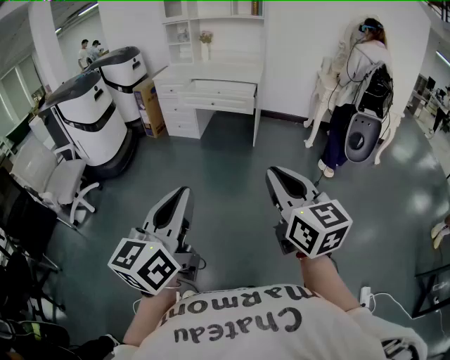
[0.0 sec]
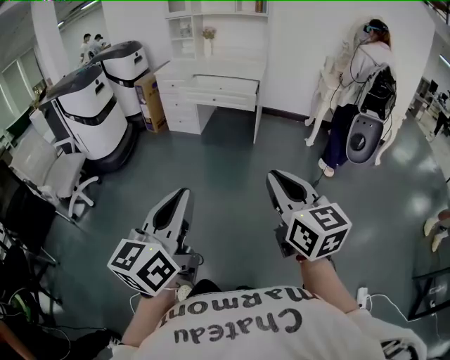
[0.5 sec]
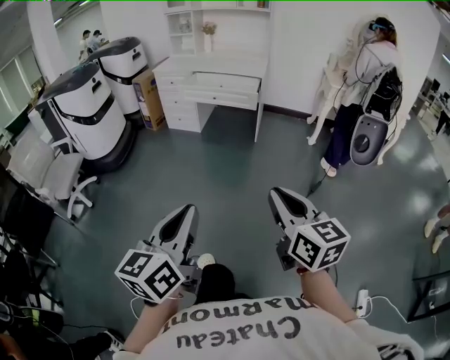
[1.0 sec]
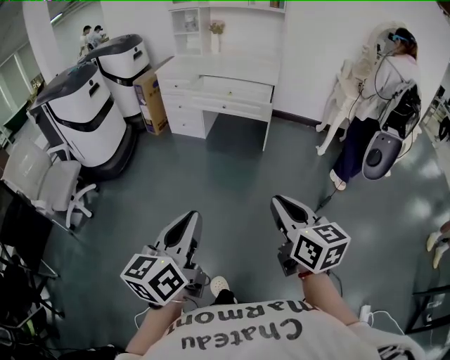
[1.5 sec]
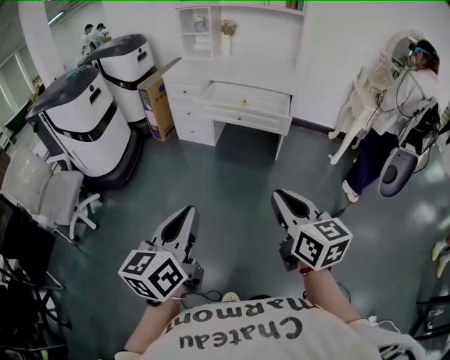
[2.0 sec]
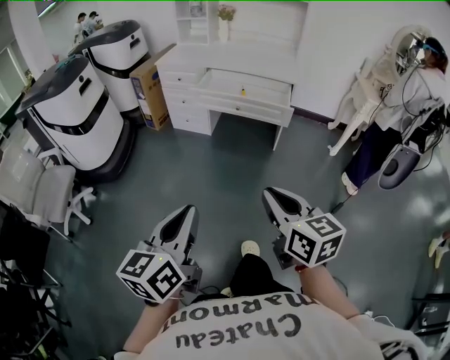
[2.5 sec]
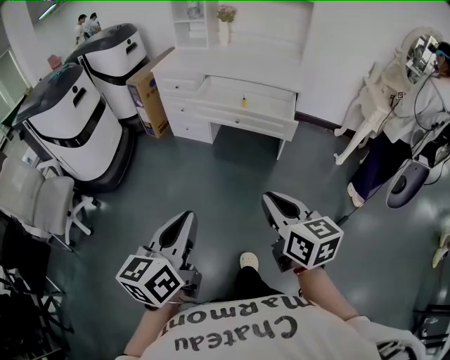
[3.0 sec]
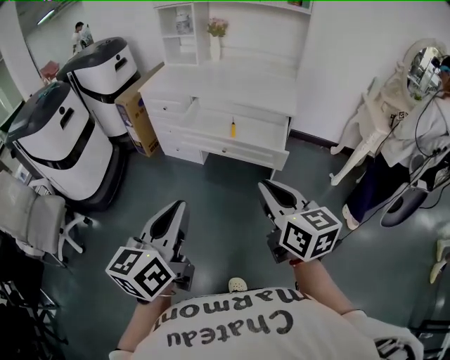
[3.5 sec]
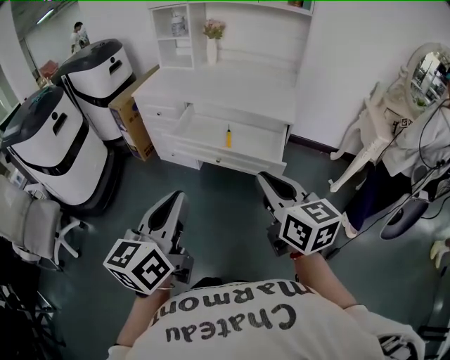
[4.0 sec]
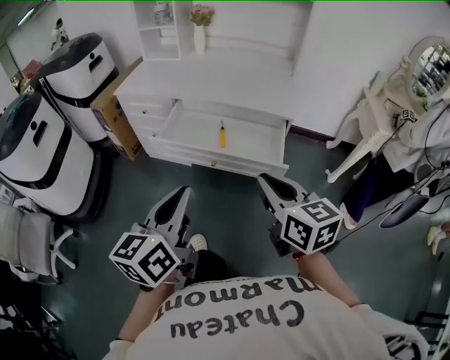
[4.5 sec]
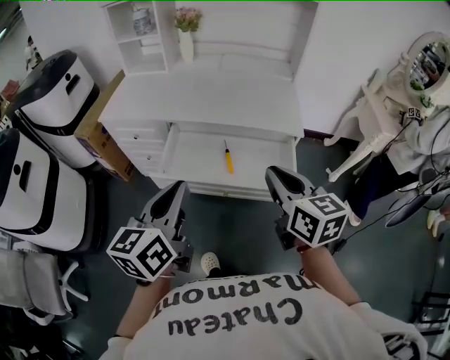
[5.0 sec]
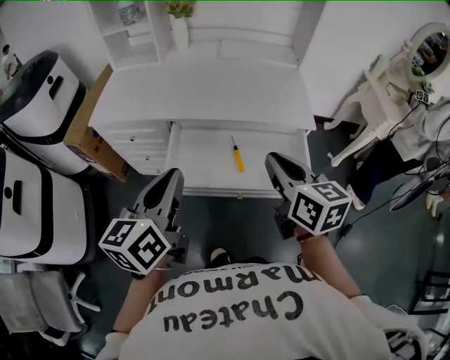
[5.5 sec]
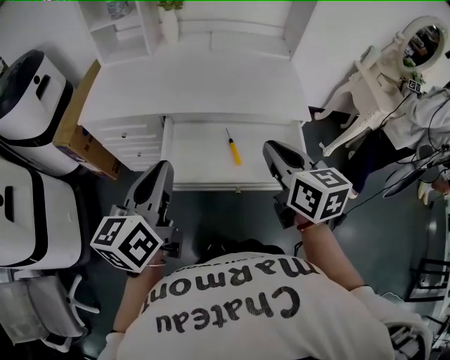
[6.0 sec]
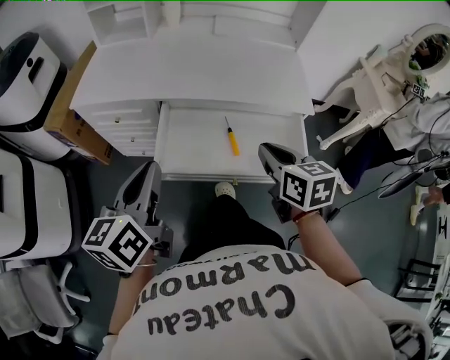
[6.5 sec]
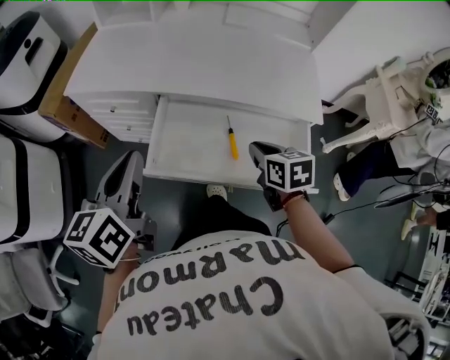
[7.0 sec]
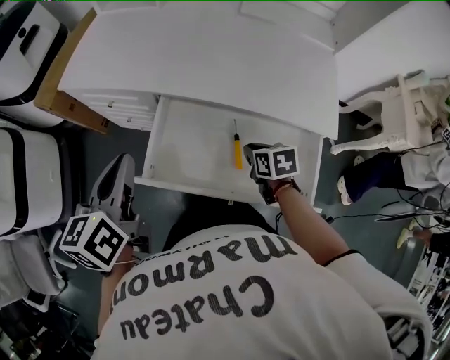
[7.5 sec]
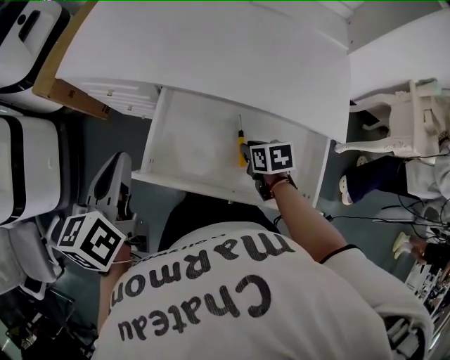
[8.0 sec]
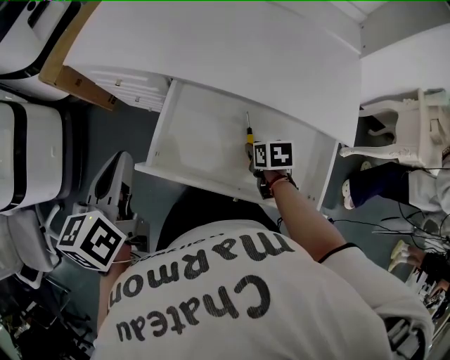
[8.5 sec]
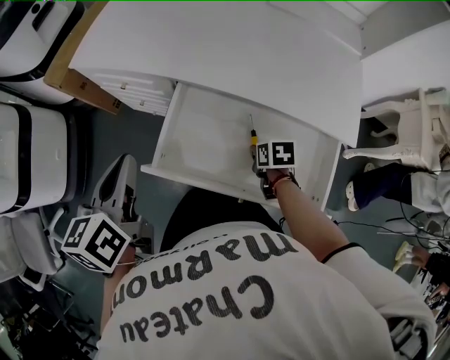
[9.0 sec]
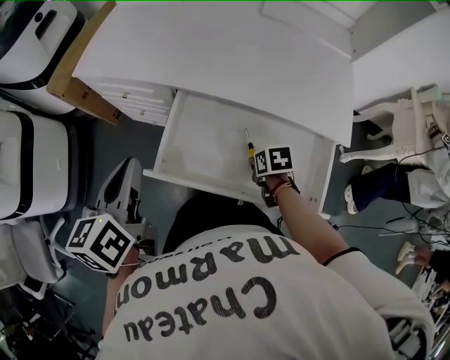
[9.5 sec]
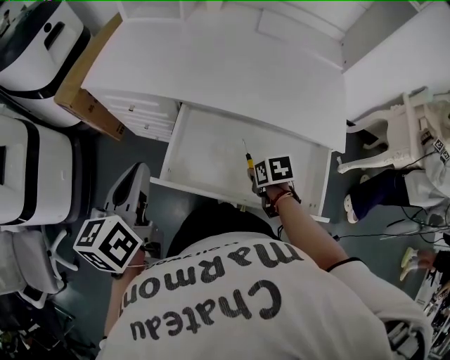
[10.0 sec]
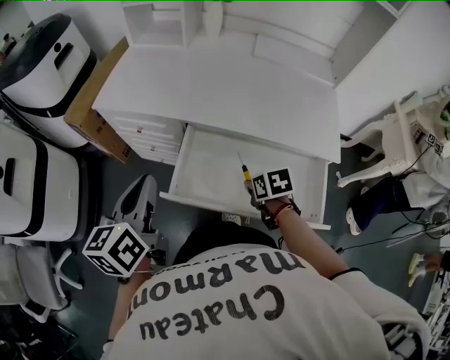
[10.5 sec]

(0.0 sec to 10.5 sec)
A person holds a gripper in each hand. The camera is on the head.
0.0 sec - 2.0 sec: The two grippers go approximately 35 cm forward.
2.0 sec - 4.0 sec: The grippers both shift forward by roughly 35 cm.
4.0 sec - 6.5 sec: The right gripper shifts about 35 cm forward, and rotates approximately 30 degrees. The left gripper goes roughly 40 cm forward and to the left.
6.5 sec - 8.5 sec: The left gripper moves forward and downward, roughly 15 cm, and changes its angle by roughly 20 degrees. The right gripper heads downward and forward, covering some 30 cm, and points its fingers some 30 degrees further downward.
8.5 sec - 10.5 sec: The left gripper travels upward by about 5 cm, while the right gripper heads upward and to the left, covering approximately 10 cm.

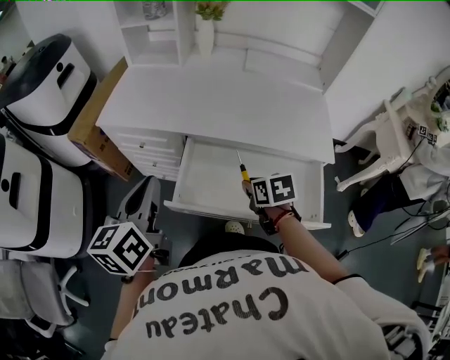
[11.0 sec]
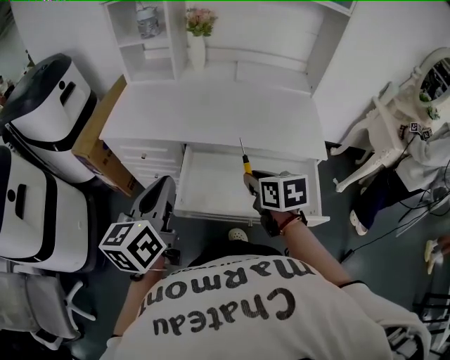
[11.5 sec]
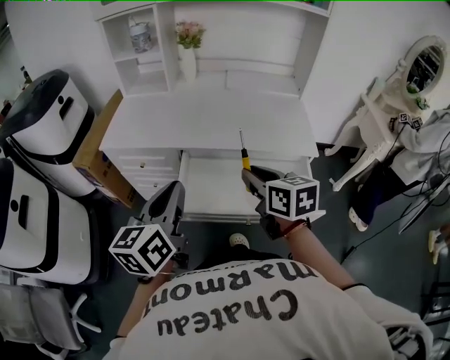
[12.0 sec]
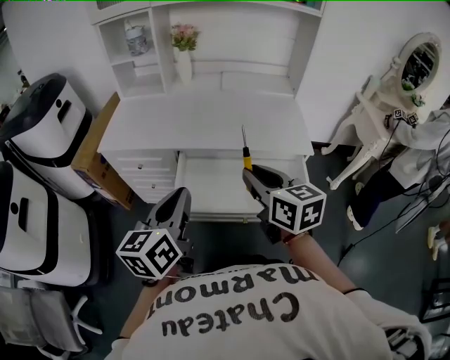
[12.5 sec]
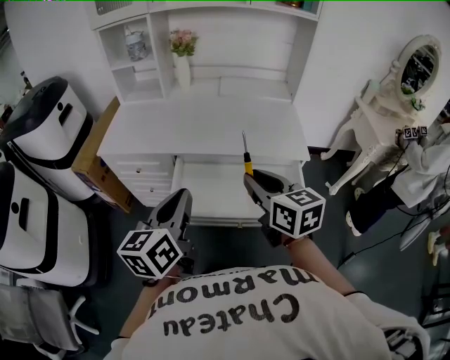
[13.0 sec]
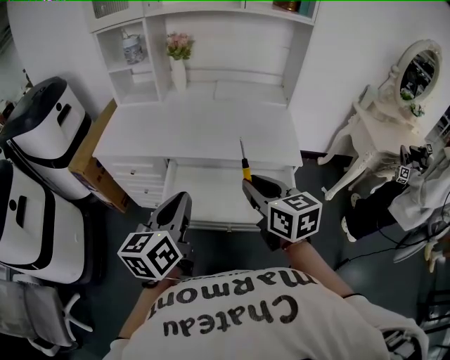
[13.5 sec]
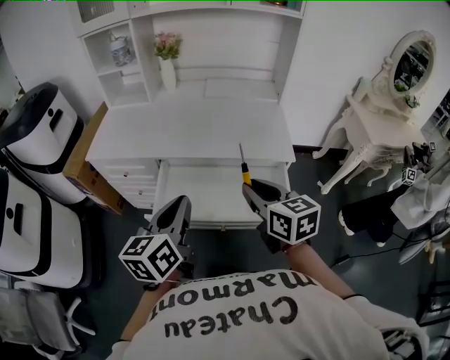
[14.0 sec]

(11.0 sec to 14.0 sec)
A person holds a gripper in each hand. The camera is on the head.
11.0 sec - 12.5 sec: The left gripper is displaced to the right and backward by about 10 cm; the right gripper goes some 20 cm upward, and angles its fingers upward, by roughly 40 degrees.
12.5 sec - 14.0 sec: Both grippers travel together to the right, approximately 10 cm.

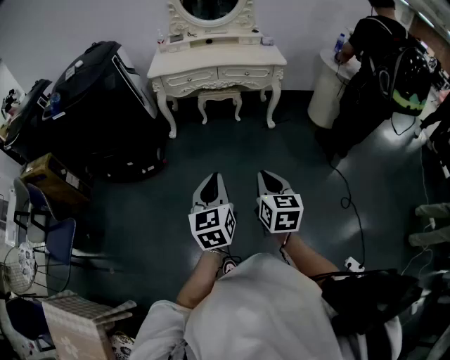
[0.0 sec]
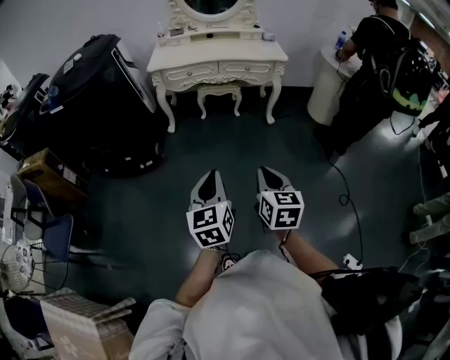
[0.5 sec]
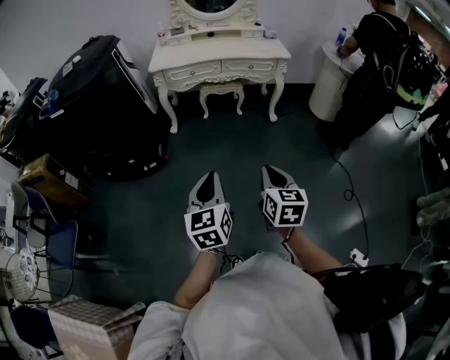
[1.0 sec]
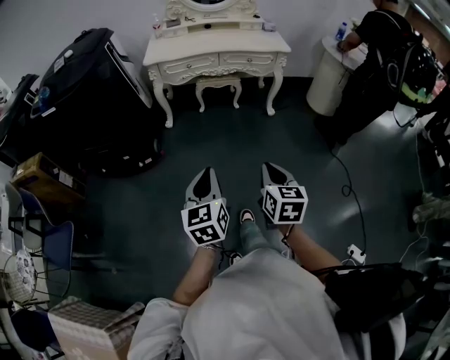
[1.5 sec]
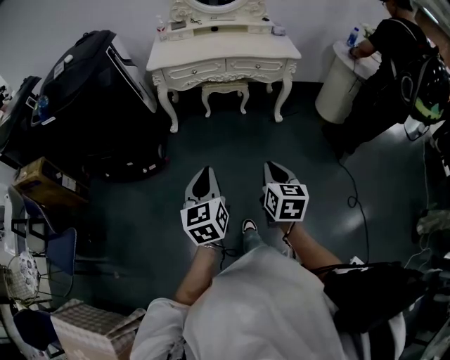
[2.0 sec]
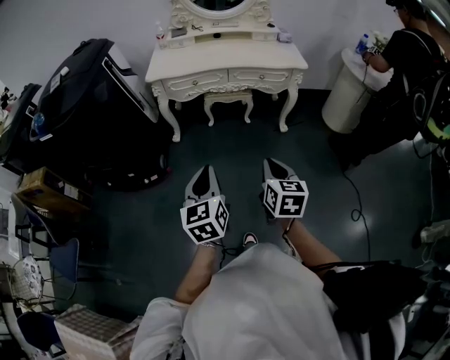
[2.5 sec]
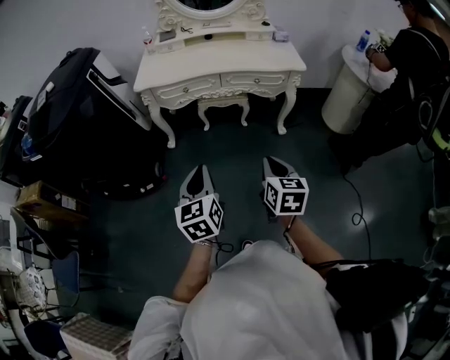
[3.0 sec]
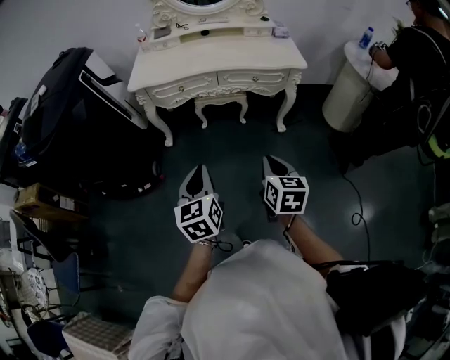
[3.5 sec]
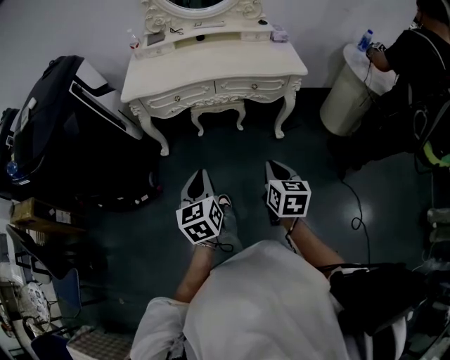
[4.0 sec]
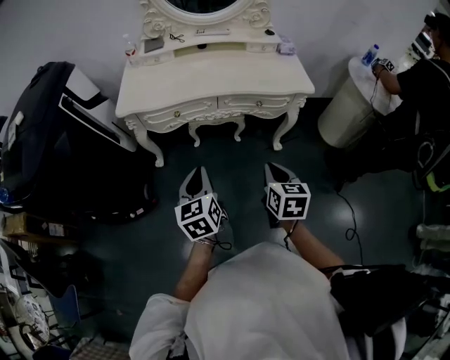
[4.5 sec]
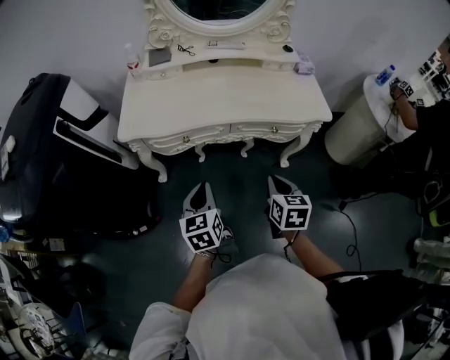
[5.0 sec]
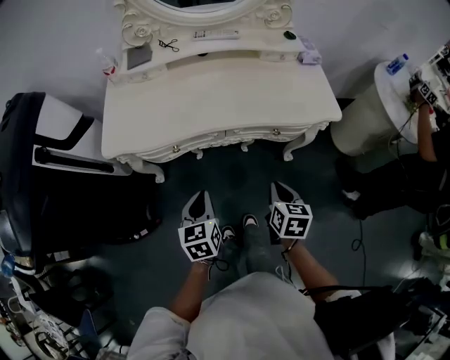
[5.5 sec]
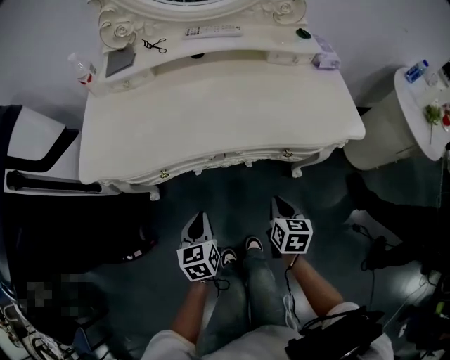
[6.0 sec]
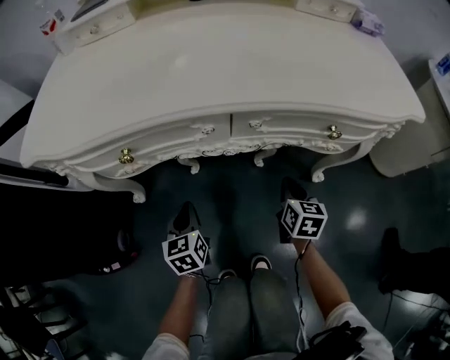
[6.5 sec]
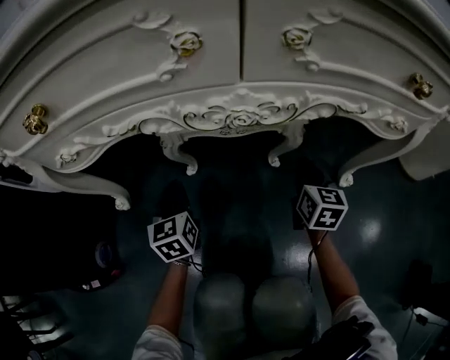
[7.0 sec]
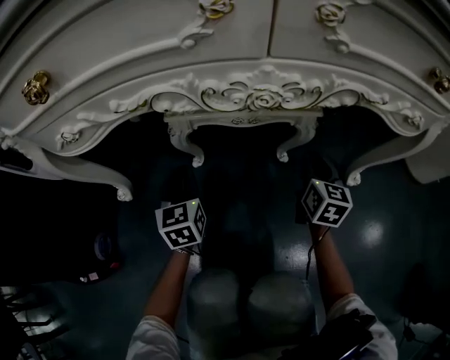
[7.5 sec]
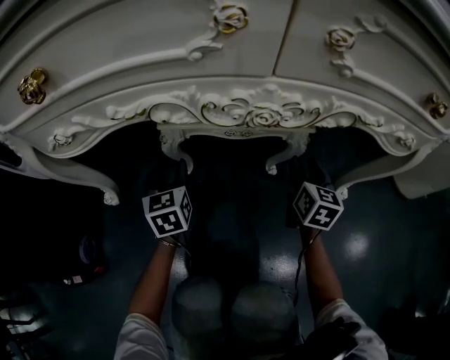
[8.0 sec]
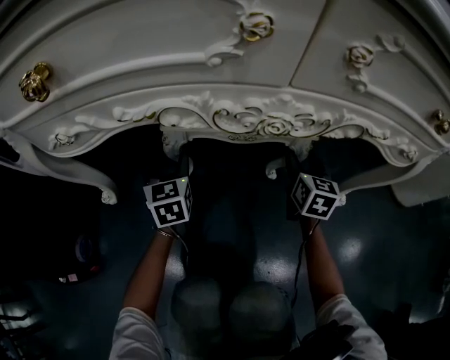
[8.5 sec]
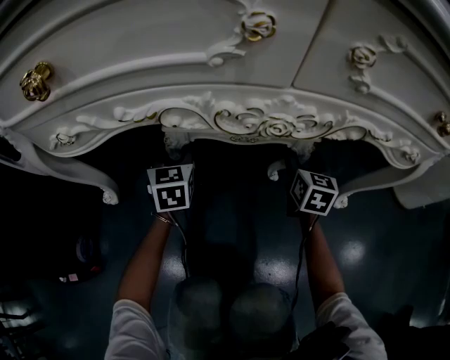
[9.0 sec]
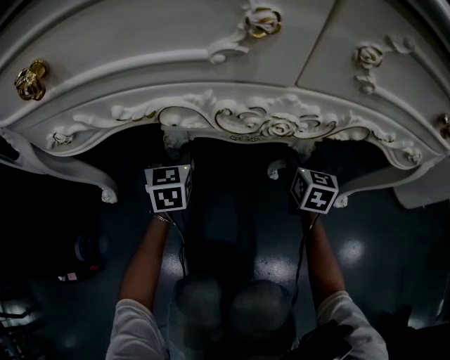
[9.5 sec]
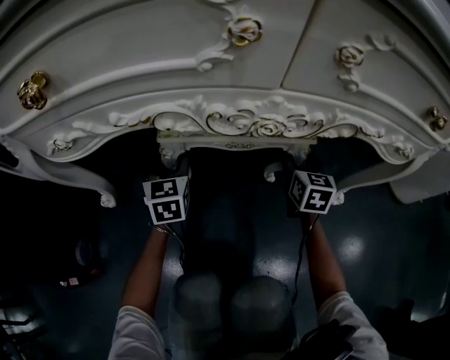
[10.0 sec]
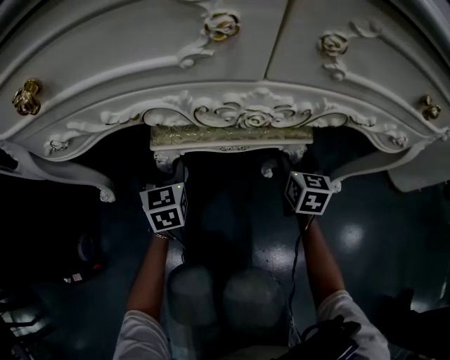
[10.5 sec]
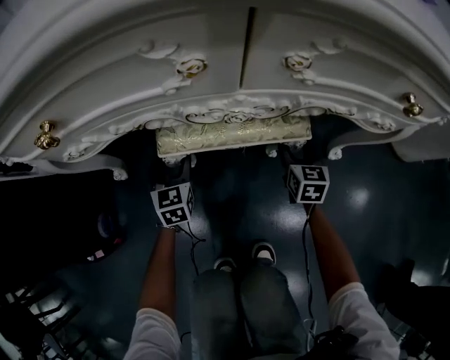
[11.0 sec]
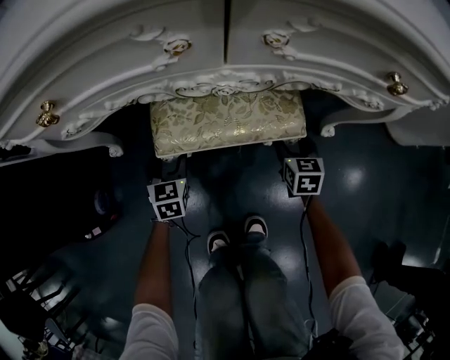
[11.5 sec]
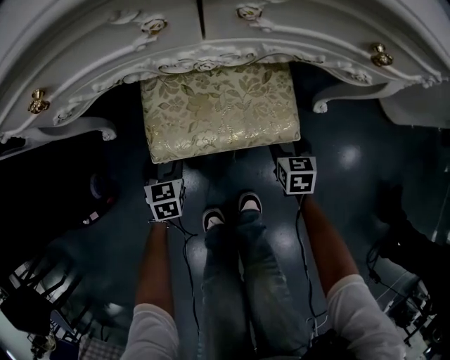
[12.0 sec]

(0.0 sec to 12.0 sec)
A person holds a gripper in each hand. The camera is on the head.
0.0 sec - 2.0 sec: The left gripper shifts approximately 15 cm forward and to the left; the right gripper is displaced forward by approximately 15 cm.
2.0 sec - 4.0 sec: Both grippers move forward, about 30 cm.
4.0 sec - 6.0 sec: The grippers both shift forward and downward by roughly 40 cm.
6.0 sec - 8.0 sec: Both grippers move downward and forward, roughly 40 cm. The right gripper rotates some 20 degrees, and opens, while the left gripper opens its fingers.
10.0 sec - 12.0 sec: Both grippers travel together backward, approximately 20 cm. The left gripper changes its angle by about 20 degrees; the right gripper rotates approximately 20 degrees.

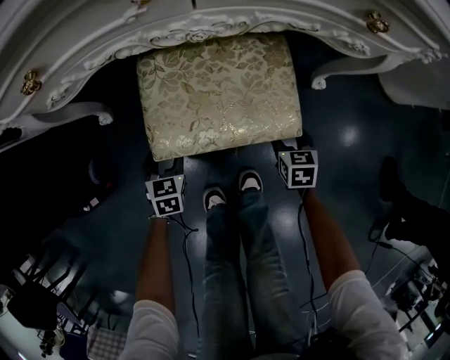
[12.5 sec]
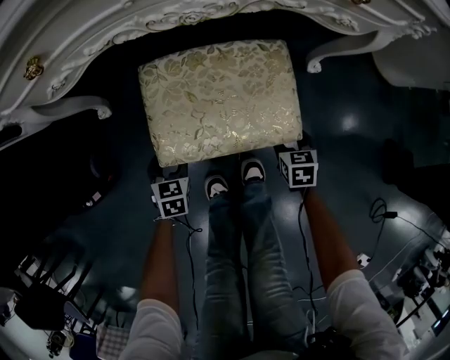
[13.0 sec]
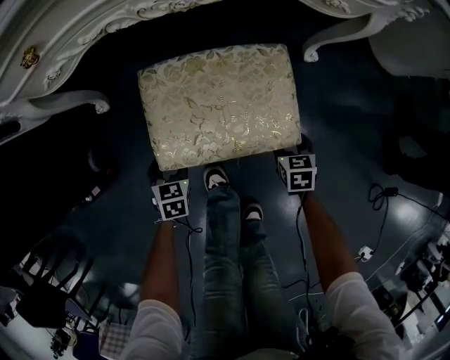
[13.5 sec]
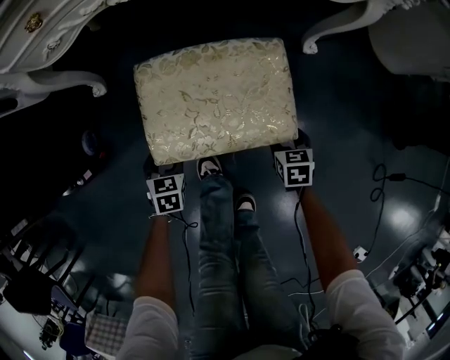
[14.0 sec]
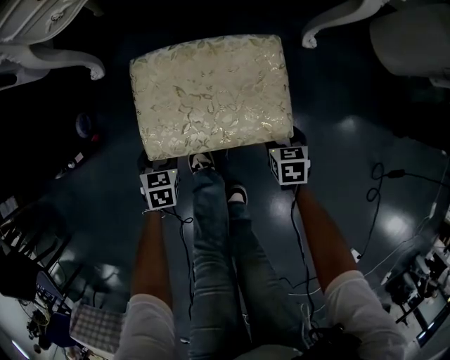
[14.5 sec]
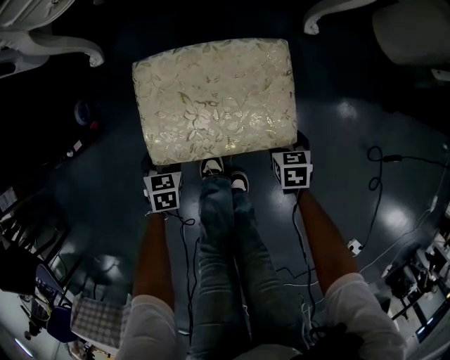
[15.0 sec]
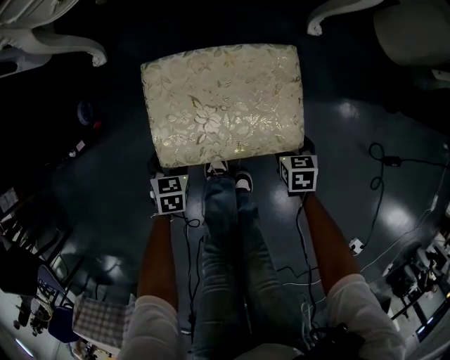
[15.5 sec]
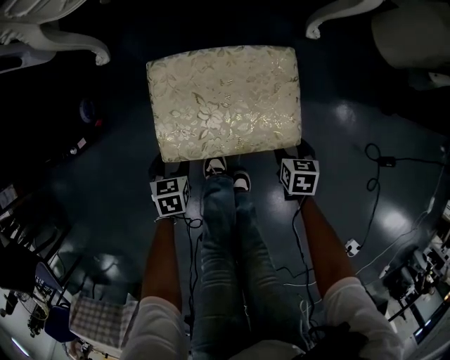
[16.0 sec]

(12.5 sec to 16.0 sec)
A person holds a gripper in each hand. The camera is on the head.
12.5 sec - 14.5 sec: Both grippers travel together forward, about 5 cm.
14.5 sec - 16.0 sec: The grippers move only a little.
